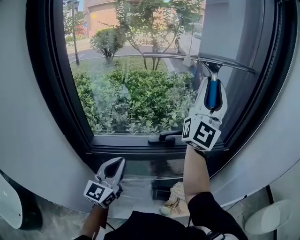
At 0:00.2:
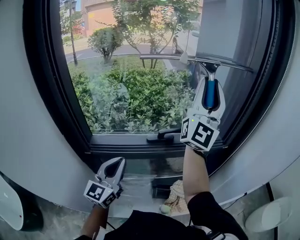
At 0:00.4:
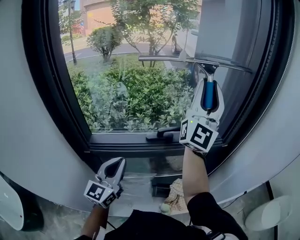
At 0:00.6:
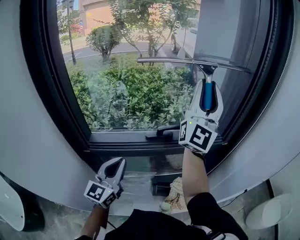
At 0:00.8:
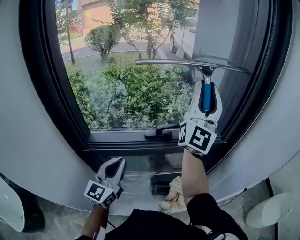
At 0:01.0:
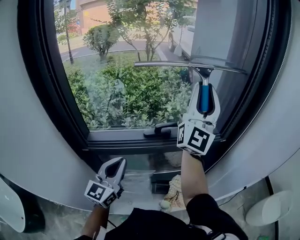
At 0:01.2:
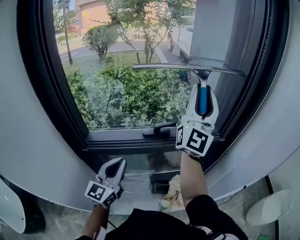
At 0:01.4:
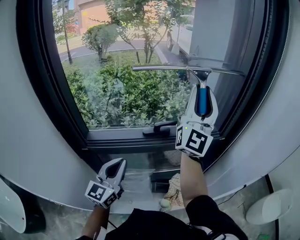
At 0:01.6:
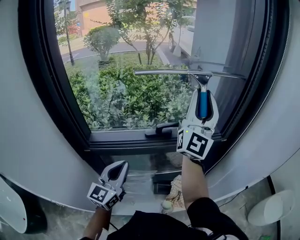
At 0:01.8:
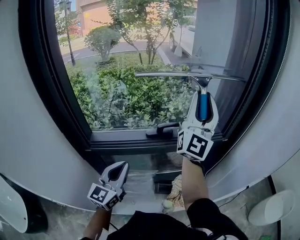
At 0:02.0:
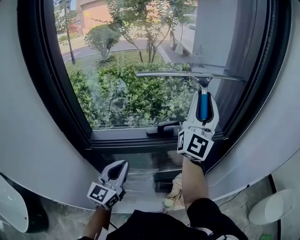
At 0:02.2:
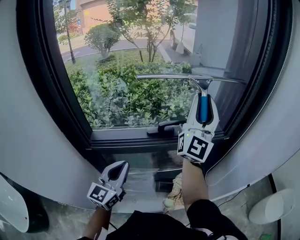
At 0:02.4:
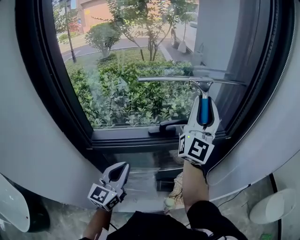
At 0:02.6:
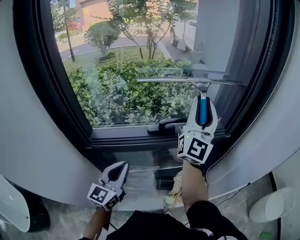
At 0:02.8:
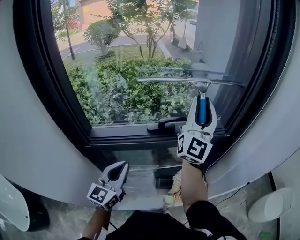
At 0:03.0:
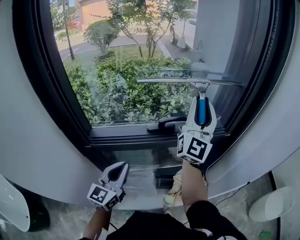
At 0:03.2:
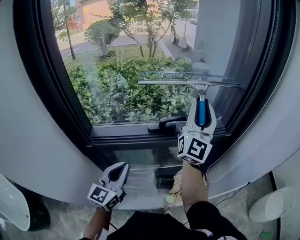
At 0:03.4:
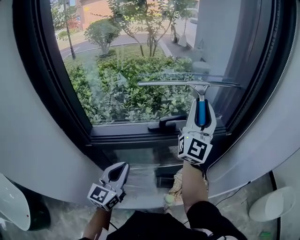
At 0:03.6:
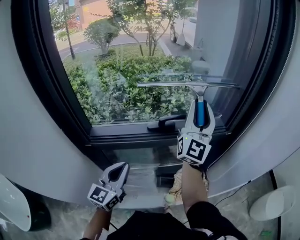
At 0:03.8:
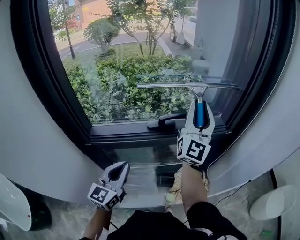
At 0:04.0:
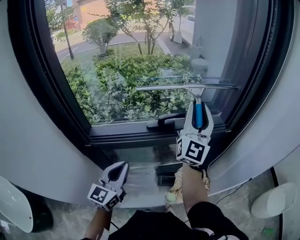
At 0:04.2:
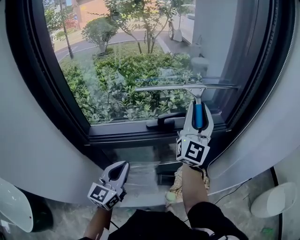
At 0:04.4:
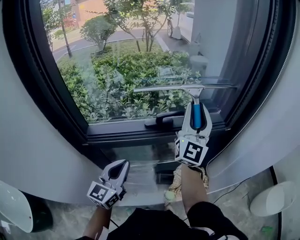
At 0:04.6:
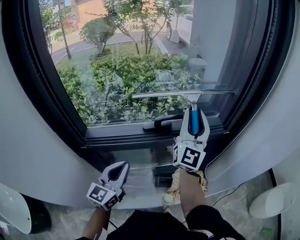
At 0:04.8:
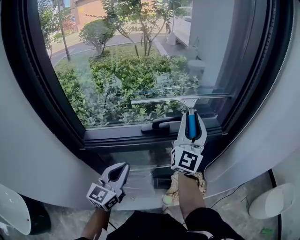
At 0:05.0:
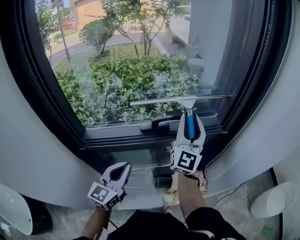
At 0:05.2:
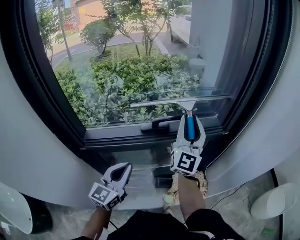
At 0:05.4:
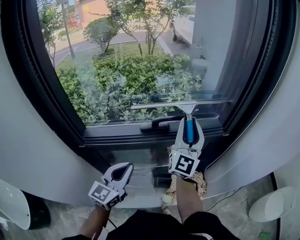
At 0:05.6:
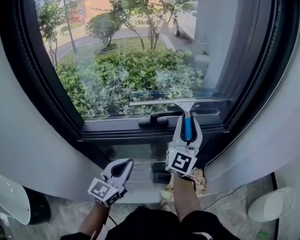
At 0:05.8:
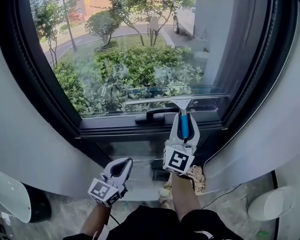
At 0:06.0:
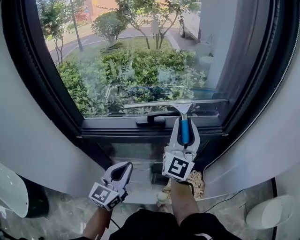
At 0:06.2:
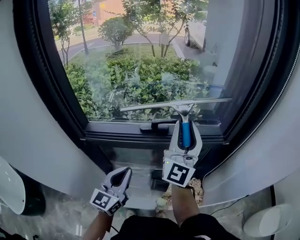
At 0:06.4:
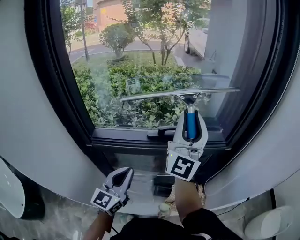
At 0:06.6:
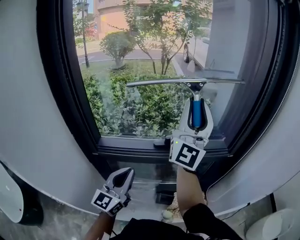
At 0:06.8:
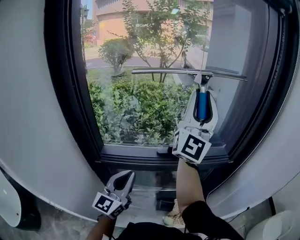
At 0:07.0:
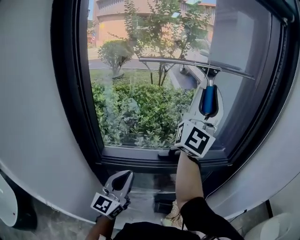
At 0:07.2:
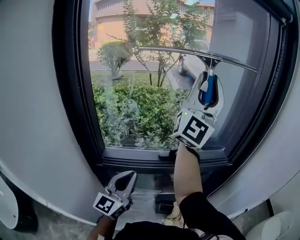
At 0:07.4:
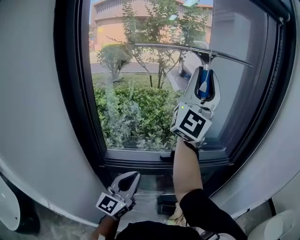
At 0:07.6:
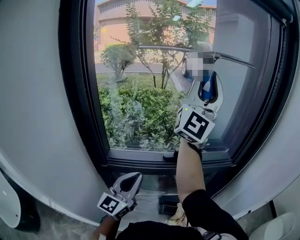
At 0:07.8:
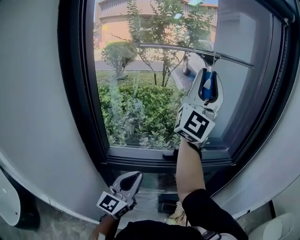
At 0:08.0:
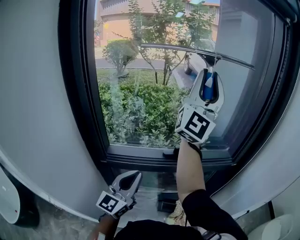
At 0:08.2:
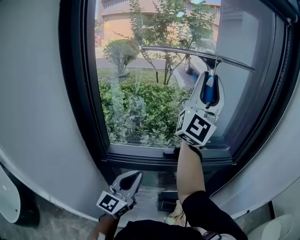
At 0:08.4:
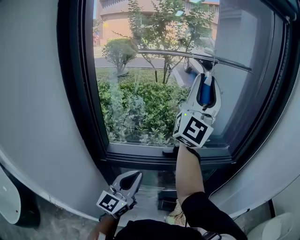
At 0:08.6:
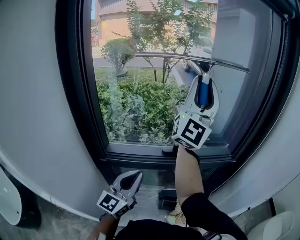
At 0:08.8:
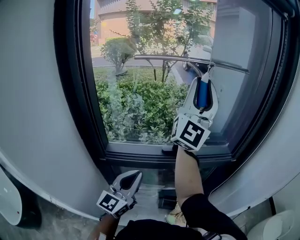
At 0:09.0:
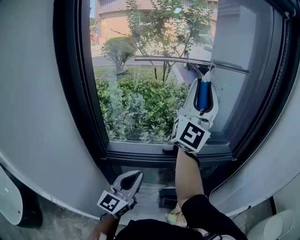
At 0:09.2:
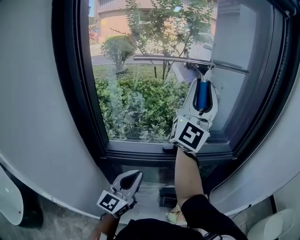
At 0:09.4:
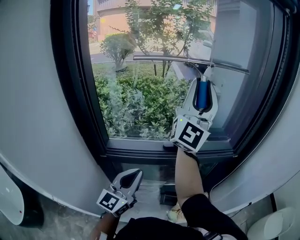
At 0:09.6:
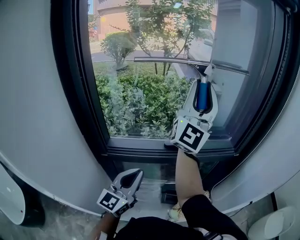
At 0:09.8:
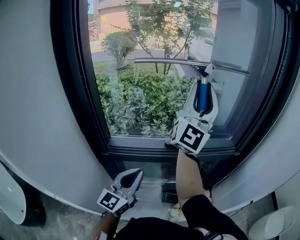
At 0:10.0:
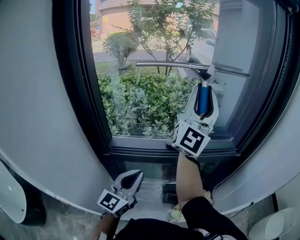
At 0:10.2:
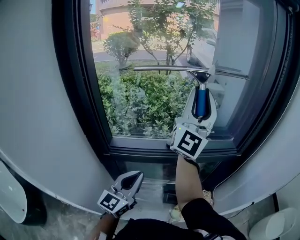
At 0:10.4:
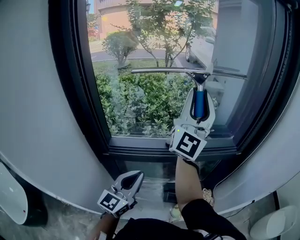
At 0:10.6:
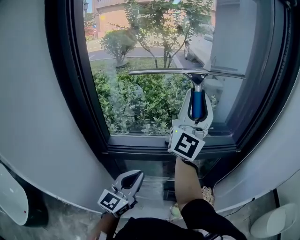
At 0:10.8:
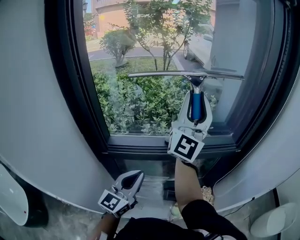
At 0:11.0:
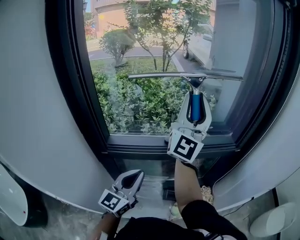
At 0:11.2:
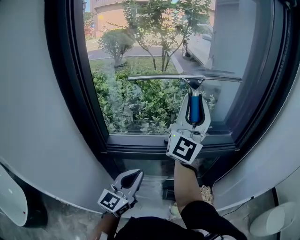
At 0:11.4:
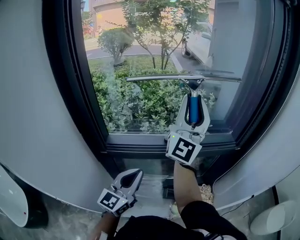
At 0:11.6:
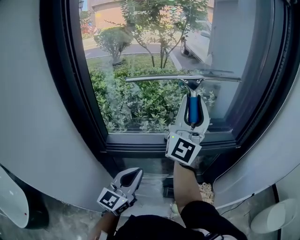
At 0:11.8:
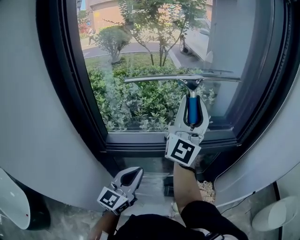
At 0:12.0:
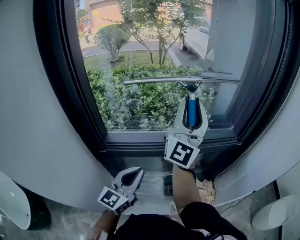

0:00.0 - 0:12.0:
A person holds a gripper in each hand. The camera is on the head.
0:00.0 - 0:01.6: The right gripper heads downward, covering some 5 cm.
0:01.6 - 0:03.0: The right gripper heads downward, covering some 5 cm.
0:03.0 - 0:04.4: The right gripper is displaced downward by some 5 cm.
0:04.4 - 0:06.0: The right gripper heads downward, covering roughly 5 cm. The left gripper heads to the right, covering about 5 cm.
0:06.0 - 0:07.6: The left gripper moves upward and to the left, approximately 10 cm, while the right gripper shifts approximately 30 cm upward, and tilts its fingers about 30 degrees upward.
0:07.6 - 0:09.0: The right gripper goes roughly 5 cm downward.
0:09.0 - 0:10.4: The right gripper heads downward, covering about 5 cm.
0:10.4 - 0:12.0: The right gripper travels downward by about 5 cm.

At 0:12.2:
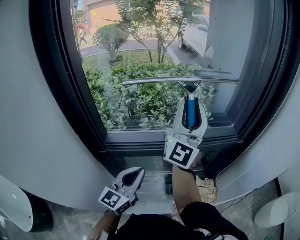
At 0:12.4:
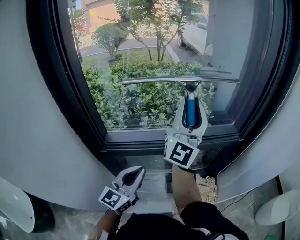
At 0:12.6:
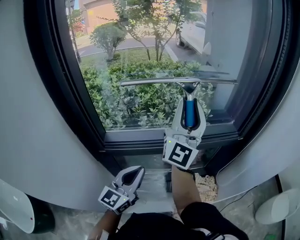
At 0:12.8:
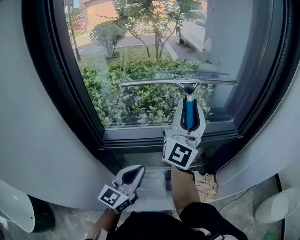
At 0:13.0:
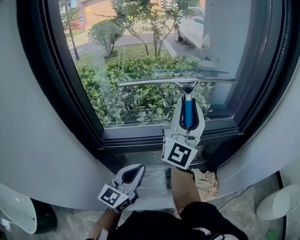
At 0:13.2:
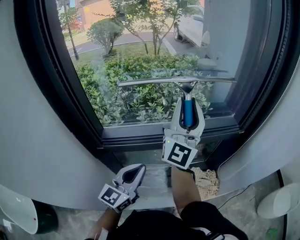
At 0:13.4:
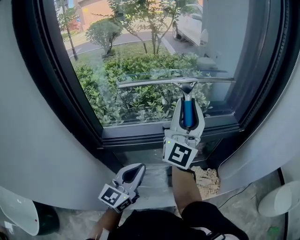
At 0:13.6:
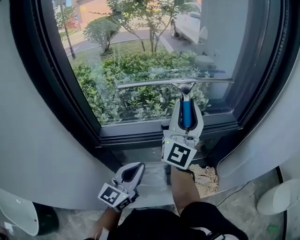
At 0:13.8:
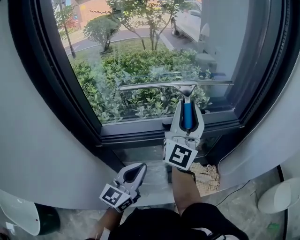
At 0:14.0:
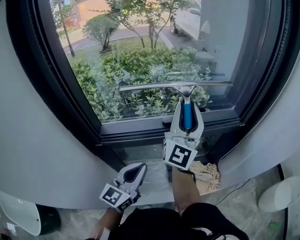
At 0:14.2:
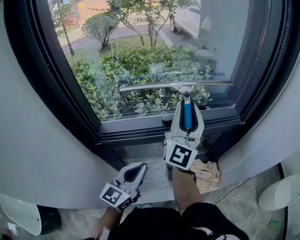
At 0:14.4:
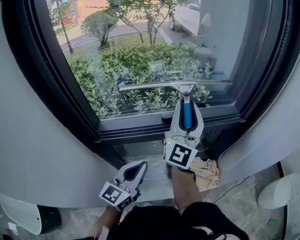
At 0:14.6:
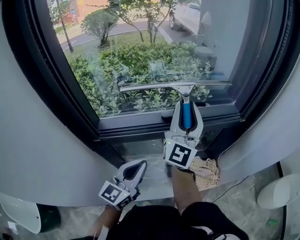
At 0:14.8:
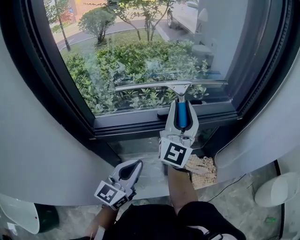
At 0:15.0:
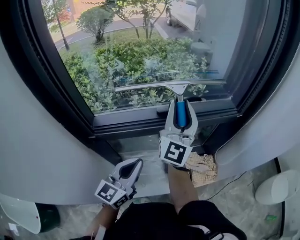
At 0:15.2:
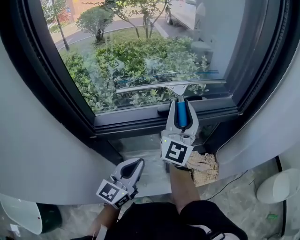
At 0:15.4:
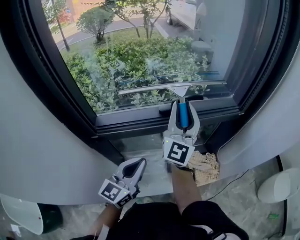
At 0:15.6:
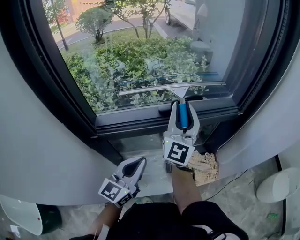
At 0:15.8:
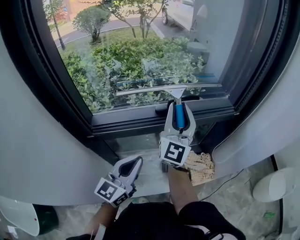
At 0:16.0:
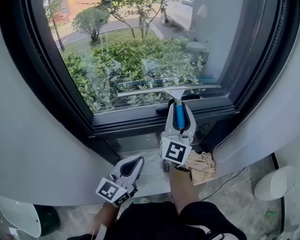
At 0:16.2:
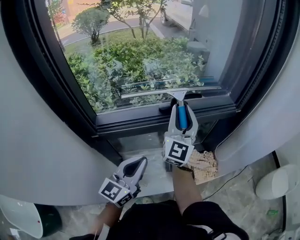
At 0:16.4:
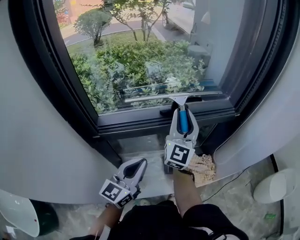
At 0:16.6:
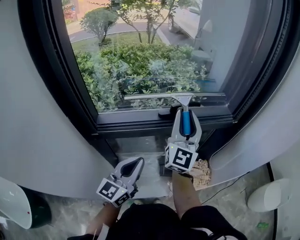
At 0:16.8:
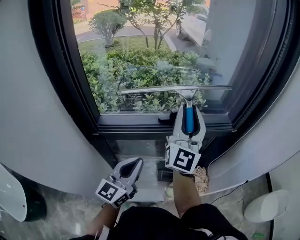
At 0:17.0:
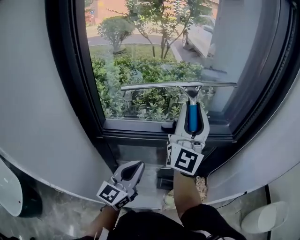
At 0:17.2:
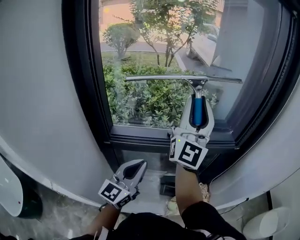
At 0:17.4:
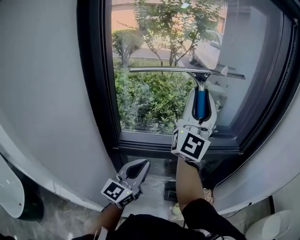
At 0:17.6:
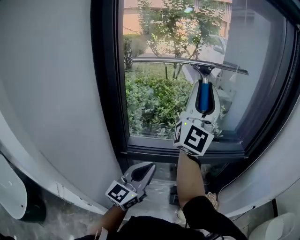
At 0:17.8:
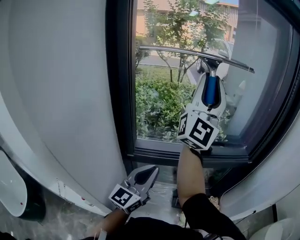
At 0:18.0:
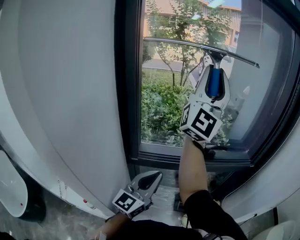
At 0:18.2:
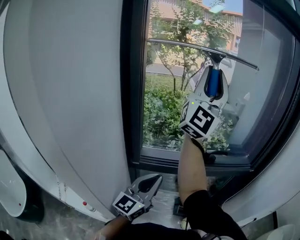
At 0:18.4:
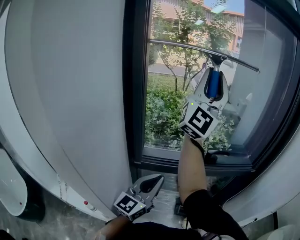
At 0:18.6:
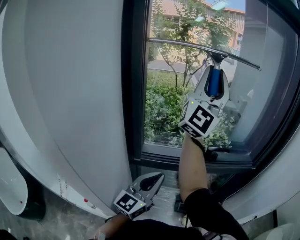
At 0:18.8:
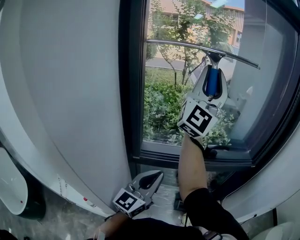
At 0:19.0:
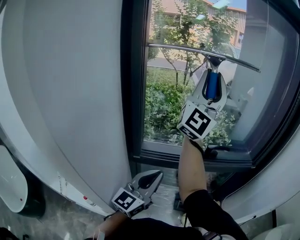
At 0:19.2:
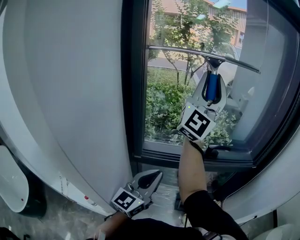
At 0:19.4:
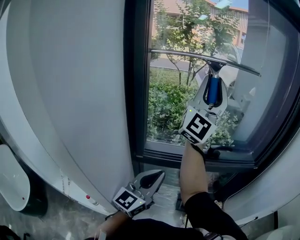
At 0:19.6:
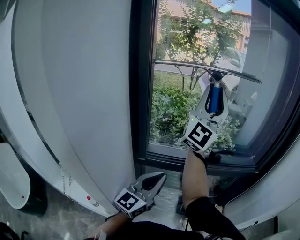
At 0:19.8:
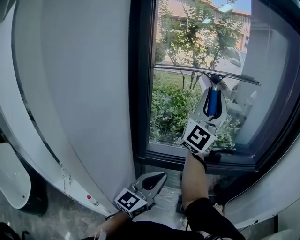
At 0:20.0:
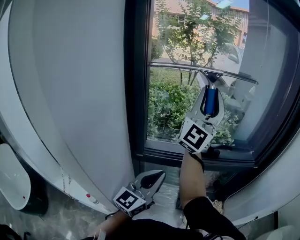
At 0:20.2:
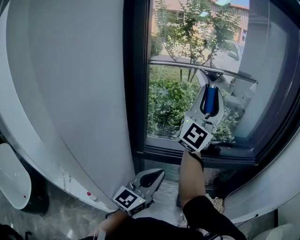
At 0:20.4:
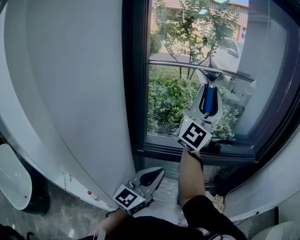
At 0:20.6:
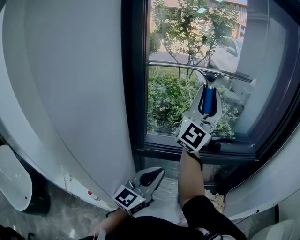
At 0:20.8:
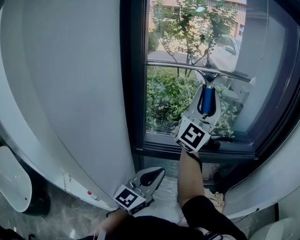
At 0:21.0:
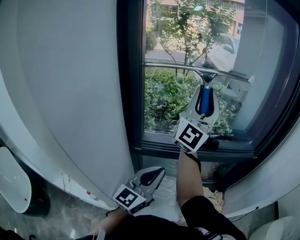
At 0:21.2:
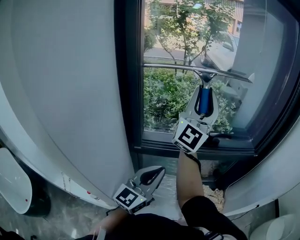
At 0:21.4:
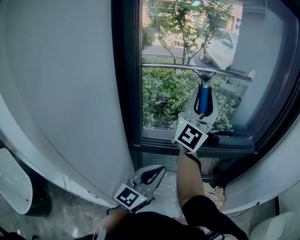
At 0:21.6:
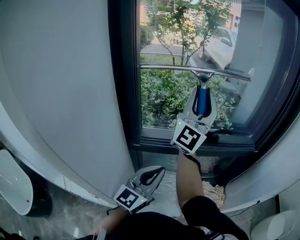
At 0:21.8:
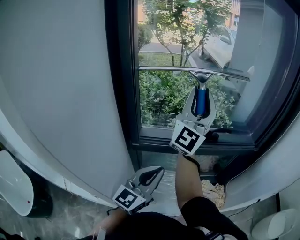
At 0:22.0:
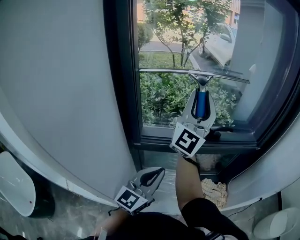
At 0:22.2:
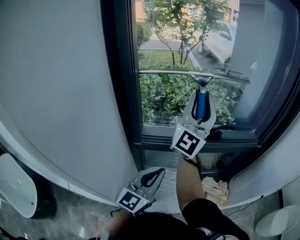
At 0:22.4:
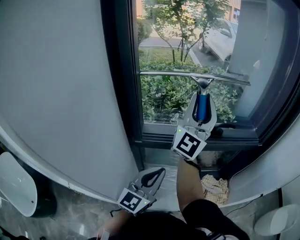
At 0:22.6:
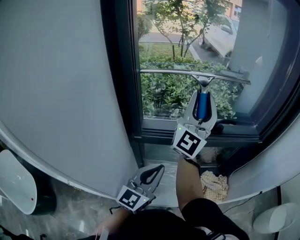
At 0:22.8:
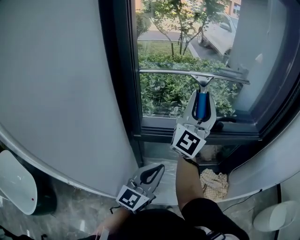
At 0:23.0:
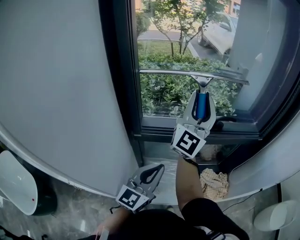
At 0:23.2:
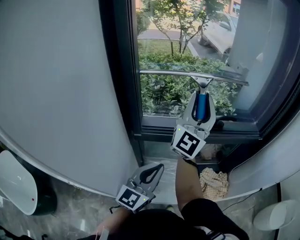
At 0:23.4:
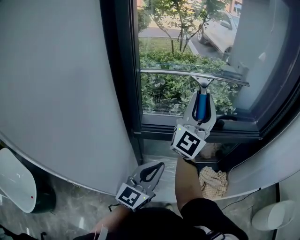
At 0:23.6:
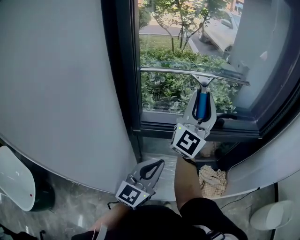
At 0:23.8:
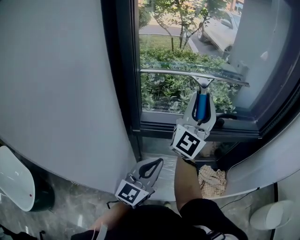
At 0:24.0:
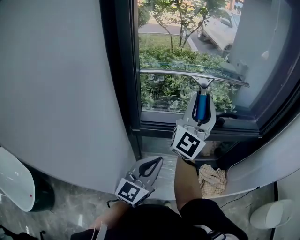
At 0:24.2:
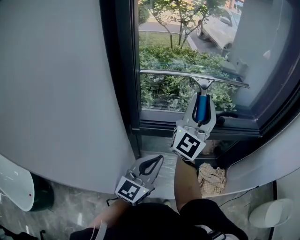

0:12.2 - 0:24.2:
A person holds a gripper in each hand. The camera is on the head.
0:12.2 - 0:13.8: The right gripper is displaced downward by roughly 5 cm.
0:13.8 - 0:15.2: The right gripper travels downward by about 5 cm.
0:15.2 - 0:16.6: There are only small adjustments of the grippers.
0:16.6 - 0:18.2: The left gripper is displaced upward and to the left by approximately 10 cm. The right gripper travels upward and to the left by about 35 cm, and angles its fingers upward, by approximately 30 degrees.
0:18.2 - 0:19.8: The right gripper shifts roughly 10 cm downward.
0:19.8 - 0:21.2: The right gripper shifts about 5 cm downward.
0:21.2 - 0:22.6: The right gripper moves downward, about 5 cm.
0:22.6 - 0:24.2: There are only small adjustments of the grippers.
